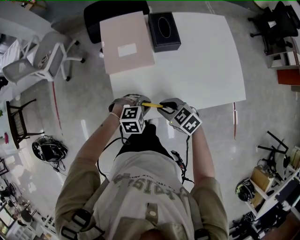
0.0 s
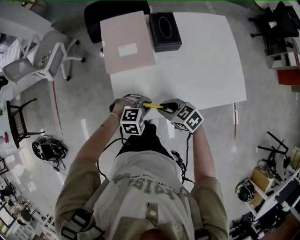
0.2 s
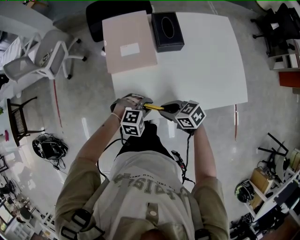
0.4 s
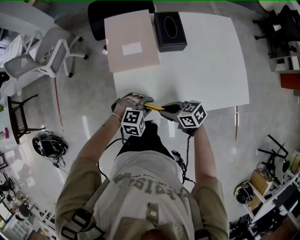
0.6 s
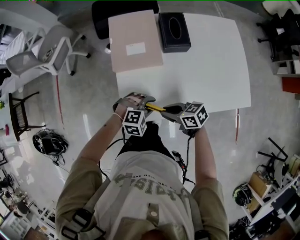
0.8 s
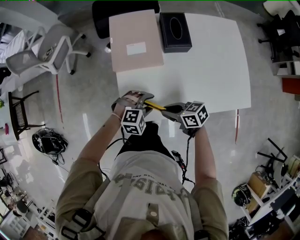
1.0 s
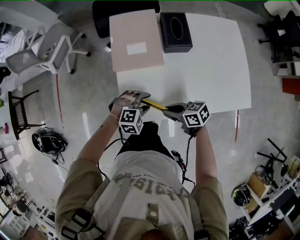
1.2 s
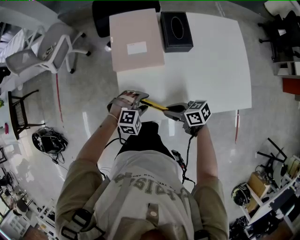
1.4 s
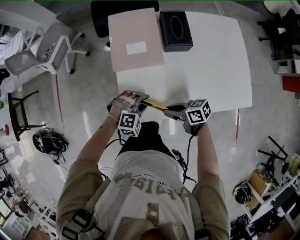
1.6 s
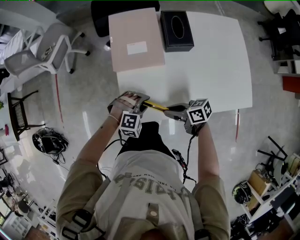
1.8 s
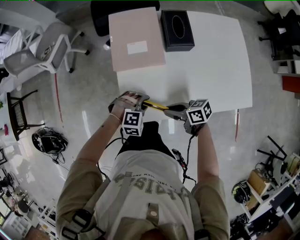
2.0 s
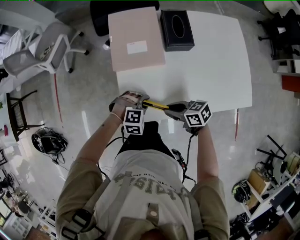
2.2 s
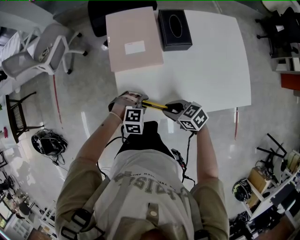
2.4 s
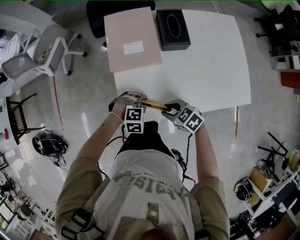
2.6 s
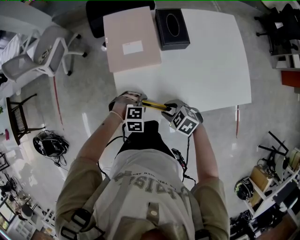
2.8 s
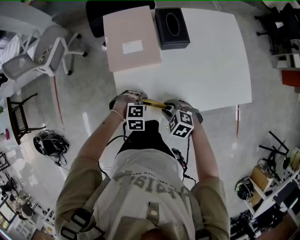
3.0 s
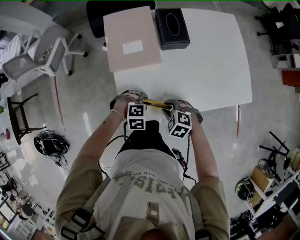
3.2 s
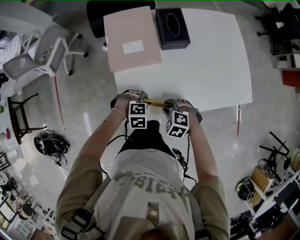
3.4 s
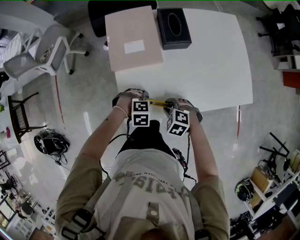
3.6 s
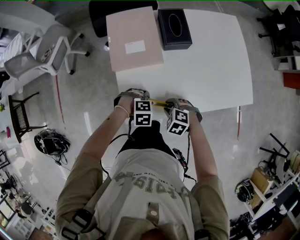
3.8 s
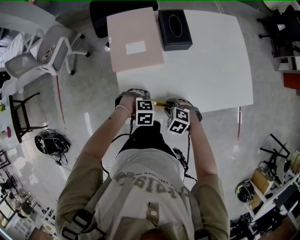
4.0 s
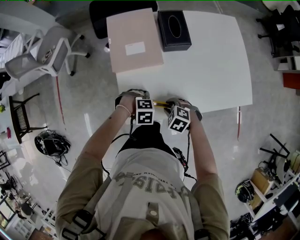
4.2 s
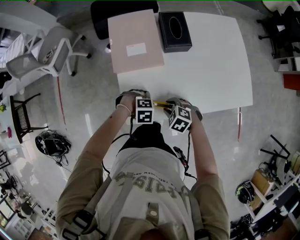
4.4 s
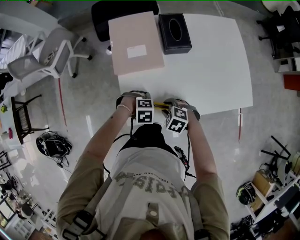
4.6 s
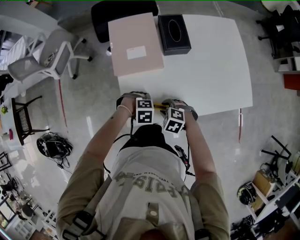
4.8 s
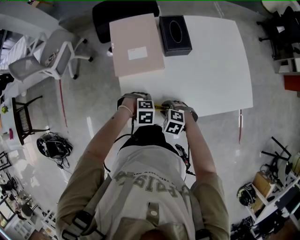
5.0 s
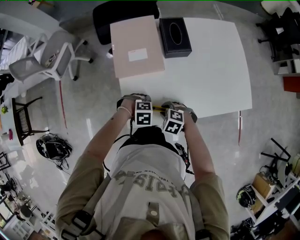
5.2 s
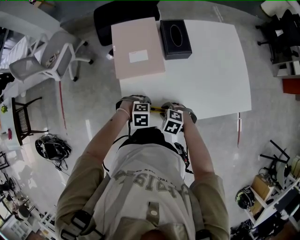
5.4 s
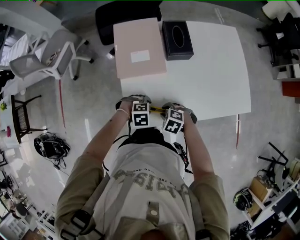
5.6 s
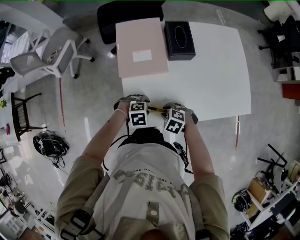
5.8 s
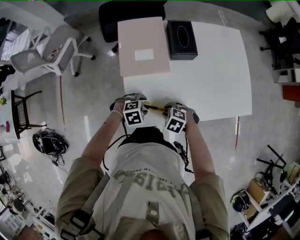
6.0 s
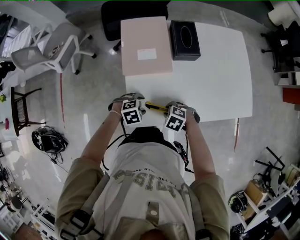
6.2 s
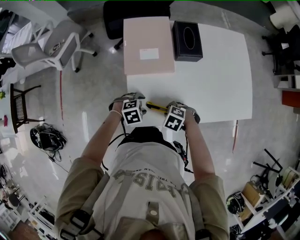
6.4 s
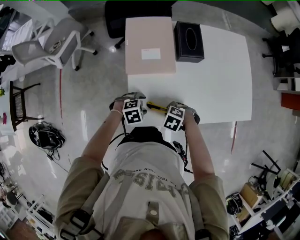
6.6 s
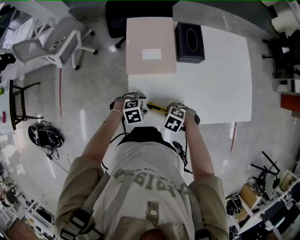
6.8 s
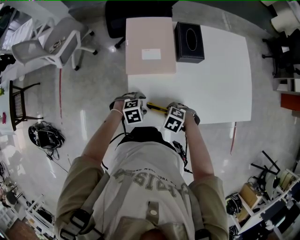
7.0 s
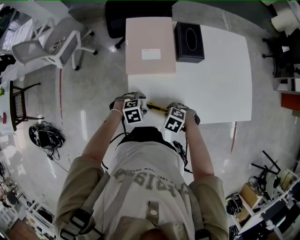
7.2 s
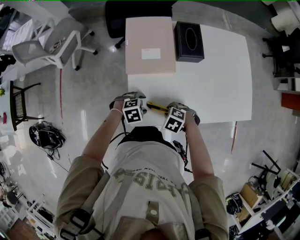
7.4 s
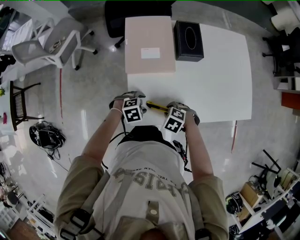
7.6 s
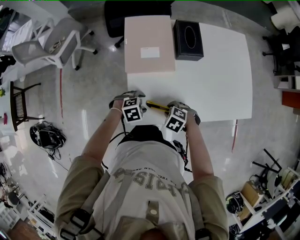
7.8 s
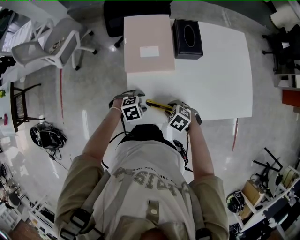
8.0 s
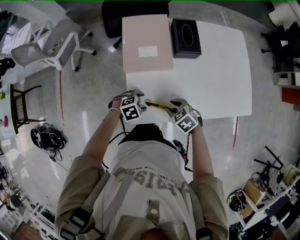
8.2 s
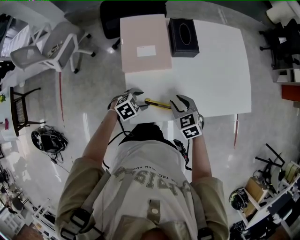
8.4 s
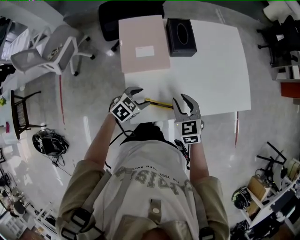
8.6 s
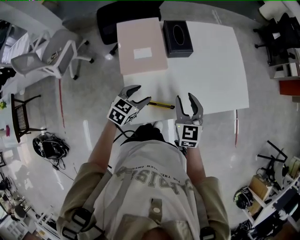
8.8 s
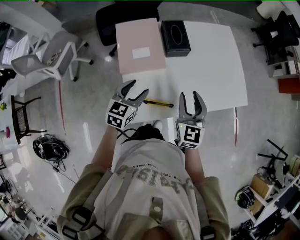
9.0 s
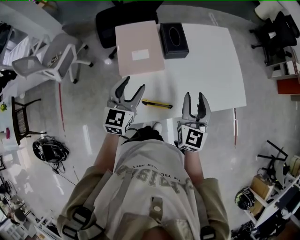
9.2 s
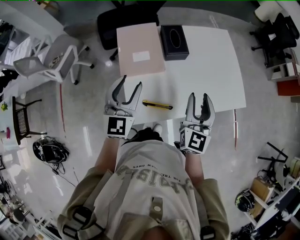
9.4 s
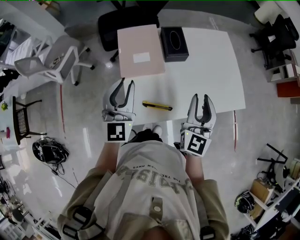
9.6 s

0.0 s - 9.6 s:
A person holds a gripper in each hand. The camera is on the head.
0.0 s - 1.6 s: The left gripper moves approximately 5 cm, and opens up; the right gripper turns by about 40 degrees.
1.6 s - 3.2 s: The left gripper turns by roughly 20 degrees. Meanwhile the right gripper shifts by approximately 5 cm, and tips its fingers downward by approximately 40 degrees.
3.2 s - 4.8 s: The grippers make only small movements.
4.8 s - 6.4 s: The left gripper ends up some 5 cm from where it was, rotates approximately 20 degrees, and opens.
6.4 s - 8.0 s: The grippers stay close to where they were, moving slightly.
8.0 s - 9.6 s: The two grippers go approximately 35 cm upward. The right gripper tips its fingers upward by roughly 70 degrees, while the left gripper angles its fingers upward, by some 70 degrees, and closes.

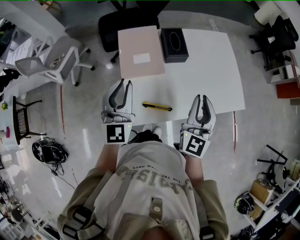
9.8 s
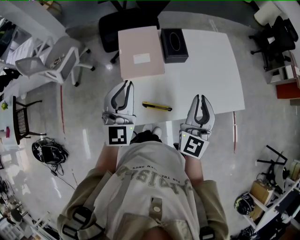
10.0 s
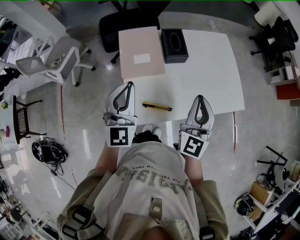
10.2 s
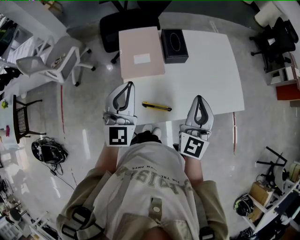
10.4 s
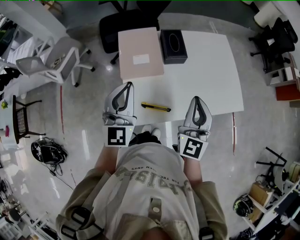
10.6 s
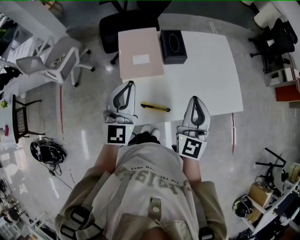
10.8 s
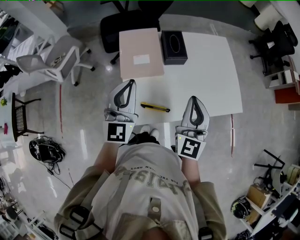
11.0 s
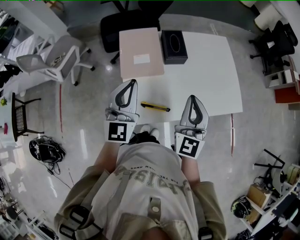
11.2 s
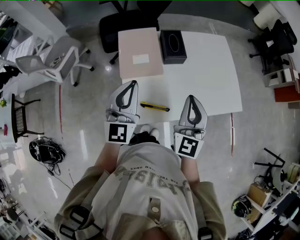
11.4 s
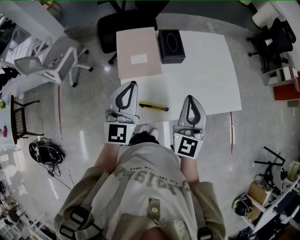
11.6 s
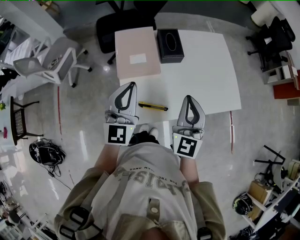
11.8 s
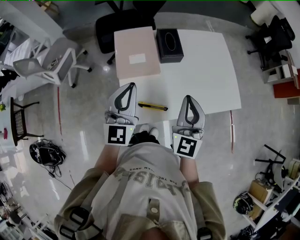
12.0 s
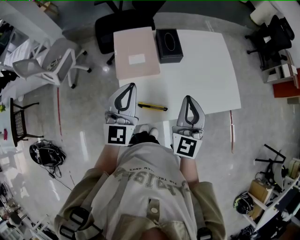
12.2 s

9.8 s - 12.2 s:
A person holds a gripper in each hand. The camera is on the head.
9.8 s - 12.2 s: There are only small adjustments of the grippers.

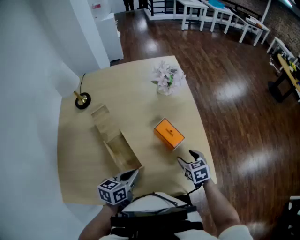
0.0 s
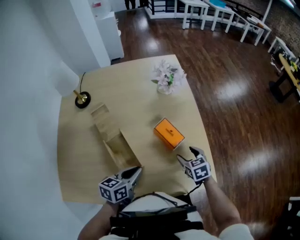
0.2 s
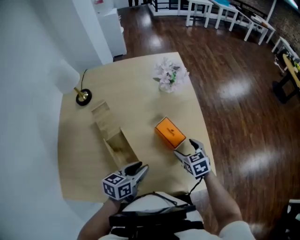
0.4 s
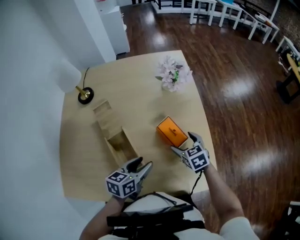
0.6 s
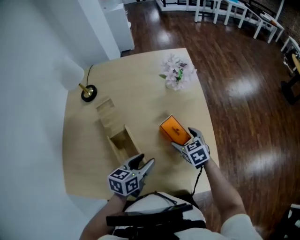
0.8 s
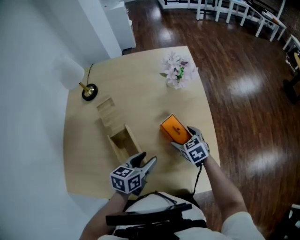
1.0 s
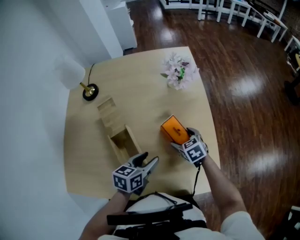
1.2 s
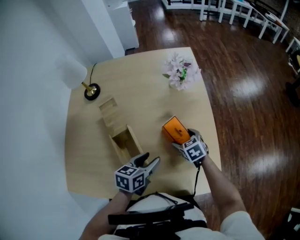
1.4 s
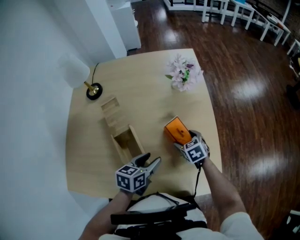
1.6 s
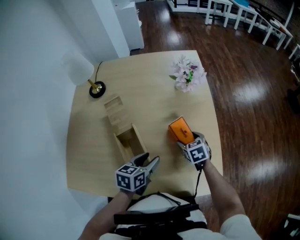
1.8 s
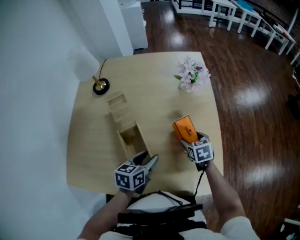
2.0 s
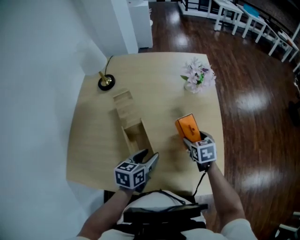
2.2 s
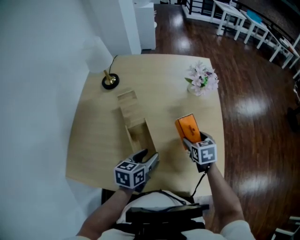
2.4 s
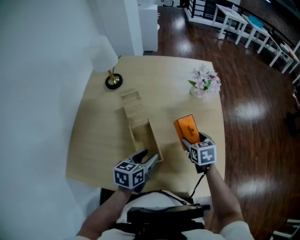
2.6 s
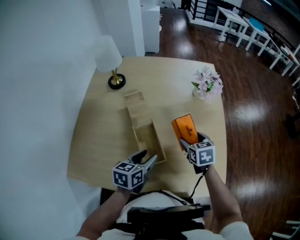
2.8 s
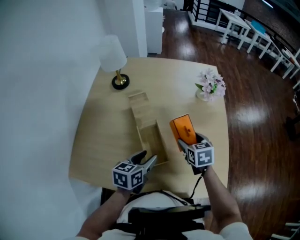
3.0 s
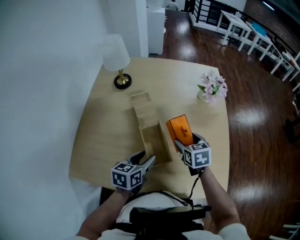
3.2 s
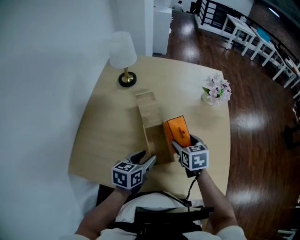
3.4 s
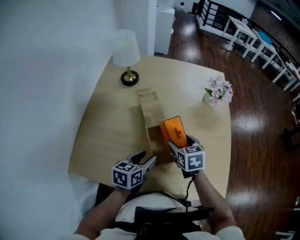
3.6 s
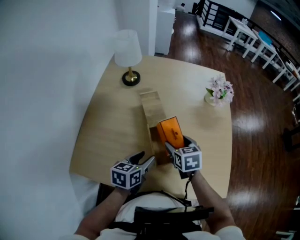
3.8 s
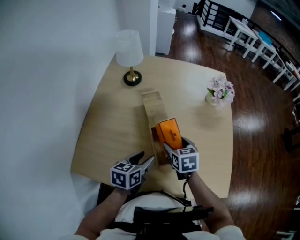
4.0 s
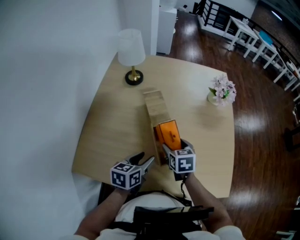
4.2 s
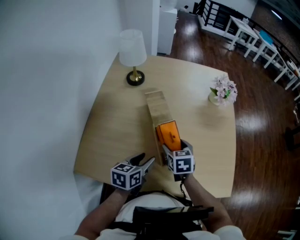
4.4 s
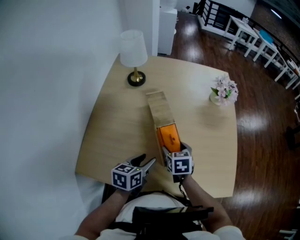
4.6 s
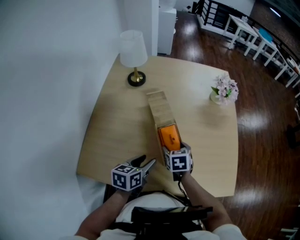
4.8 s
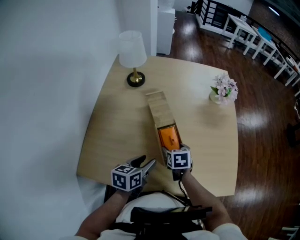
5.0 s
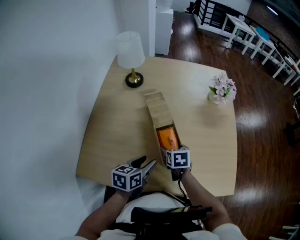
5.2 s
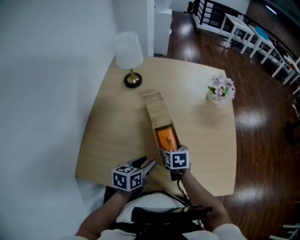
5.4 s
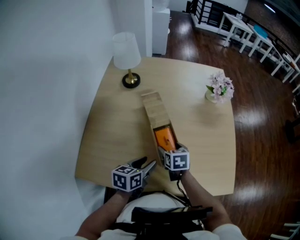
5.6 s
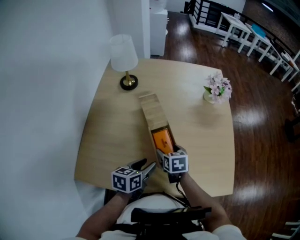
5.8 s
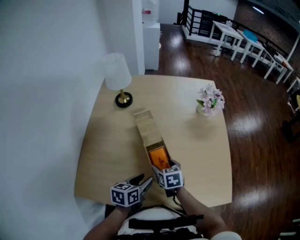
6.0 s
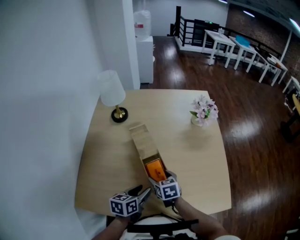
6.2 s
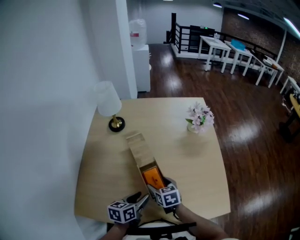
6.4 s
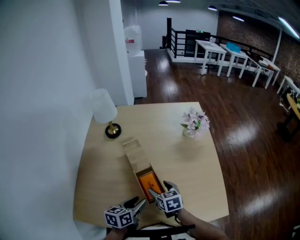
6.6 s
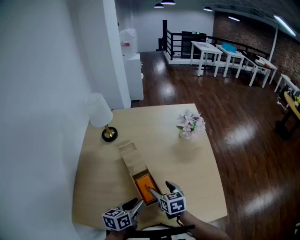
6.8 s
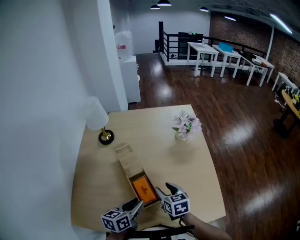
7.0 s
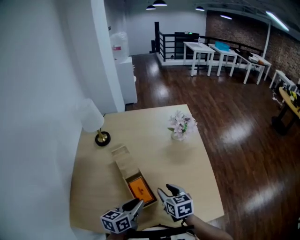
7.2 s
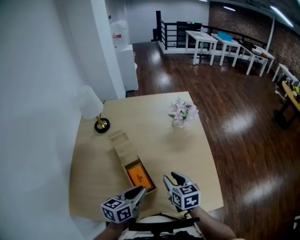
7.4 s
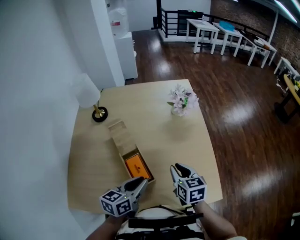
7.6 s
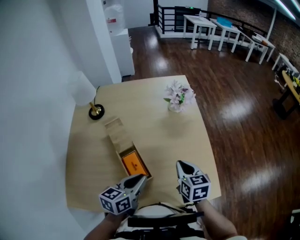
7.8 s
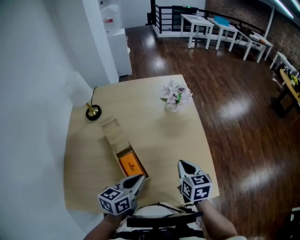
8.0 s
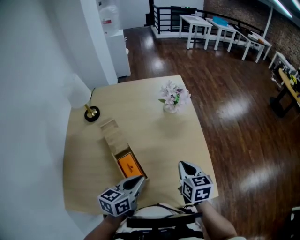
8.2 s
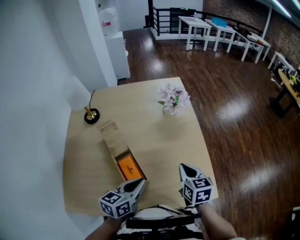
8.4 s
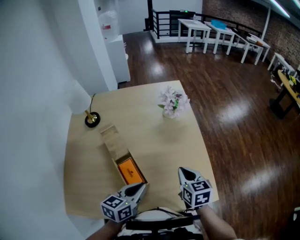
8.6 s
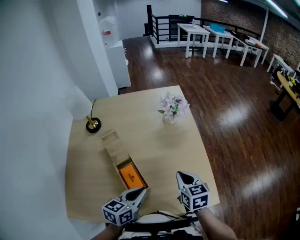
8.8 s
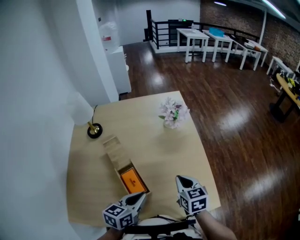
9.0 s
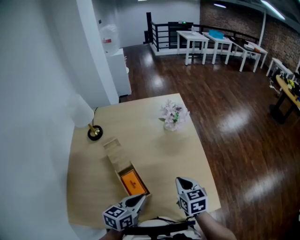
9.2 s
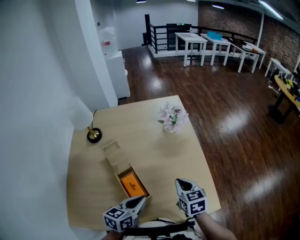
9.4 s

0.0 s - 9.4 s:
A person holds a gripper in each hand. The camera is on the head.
0.0 s - 1.6 s: The right gripper moves forward and to the left, about 10 cm. The left gripper heads forward, covering some 5 cm, and opens.
1.6 s - 3.2 s: The right gripper heads to the left and upward, covering roughly 15 cm. The left gripper goes roughly 15 cm to the left.
3.2 s - 4.8 s: The left gripper travels to the left by approximately 5 cm. The right gripper is displaced to the left, downward and backward by roughly 15 cm.
4.8 s - 6.2 s: The grippers make only small movements.
6.2 s - 7.8 s: The left gripper goes approximately 15 cm to the right and upward, and closes; the right gripper travels to the right and upward by roughly 25 cm, swivels about 20 degrees, and closes up.
7.8 s - 9.4 s: The grippers move only a little.

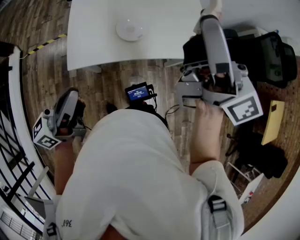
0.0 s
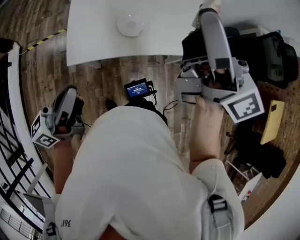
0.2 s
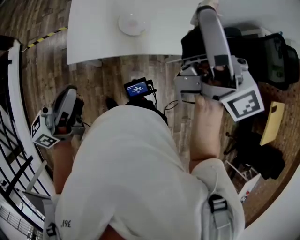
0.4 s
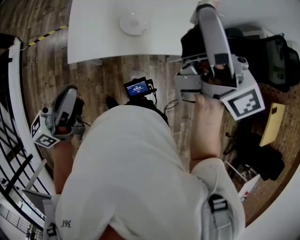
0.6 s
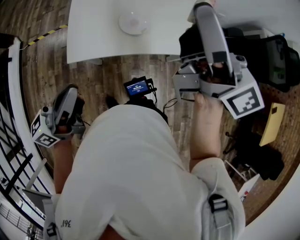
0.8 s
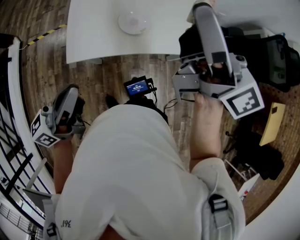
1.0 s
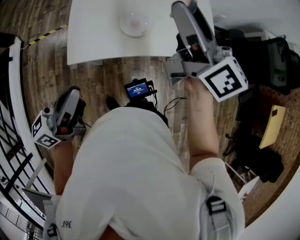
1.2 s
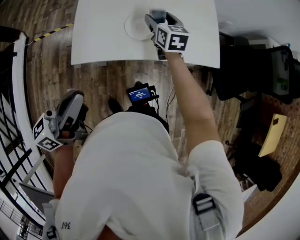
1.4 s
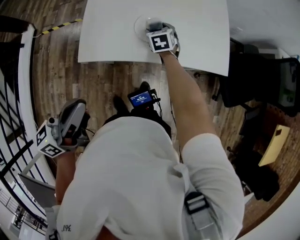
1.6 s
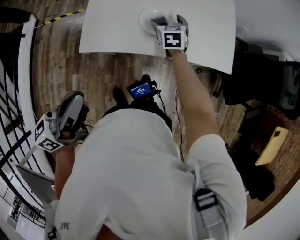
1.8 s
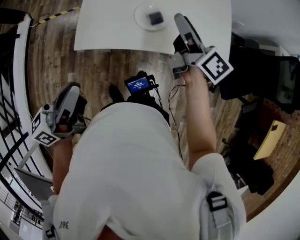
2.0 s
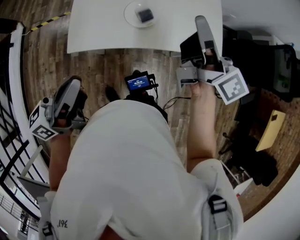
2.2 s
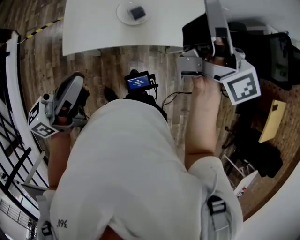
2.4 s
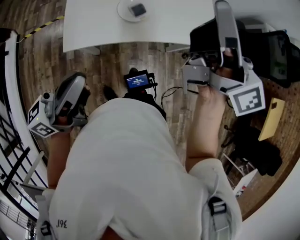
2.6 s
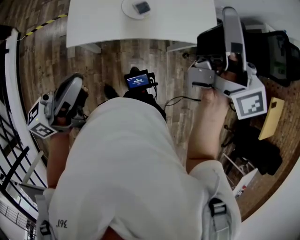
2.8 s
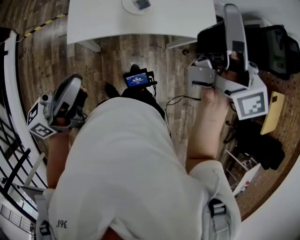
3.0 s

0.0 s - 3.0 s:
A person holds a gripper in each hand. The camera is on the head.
0.0 s - 1.6 s: The right gripper is displaced downward by about 50 cm, and tilts its fingers about 70 degrees downward.
1.6 s - 3.0 s: The right gripper moves upward and backward, about 50 cm, points its fingers about 70 degrees further upward, and closes; the left gripper goes approximately 5 cm backward.
